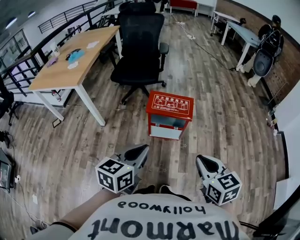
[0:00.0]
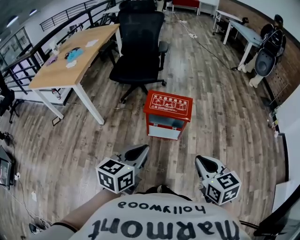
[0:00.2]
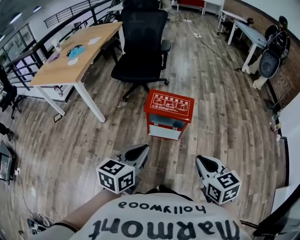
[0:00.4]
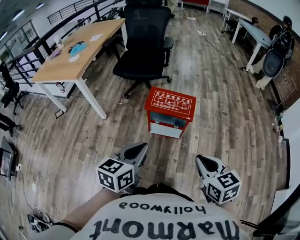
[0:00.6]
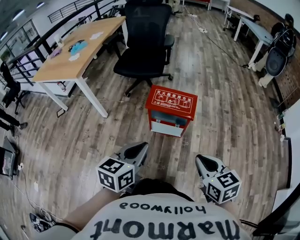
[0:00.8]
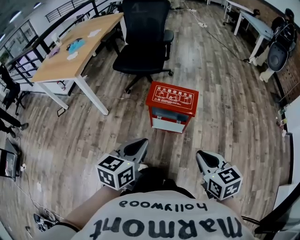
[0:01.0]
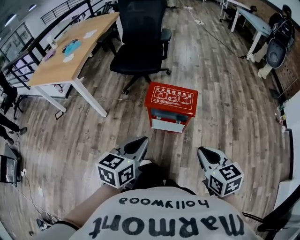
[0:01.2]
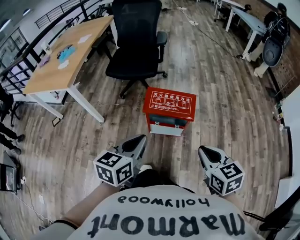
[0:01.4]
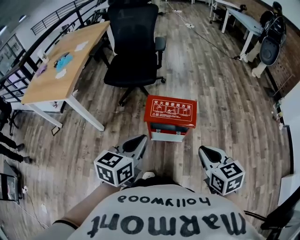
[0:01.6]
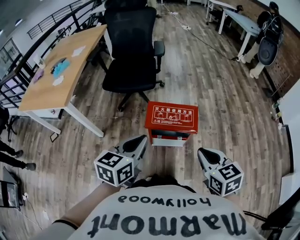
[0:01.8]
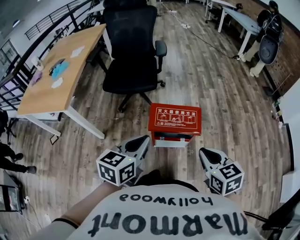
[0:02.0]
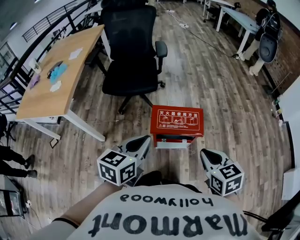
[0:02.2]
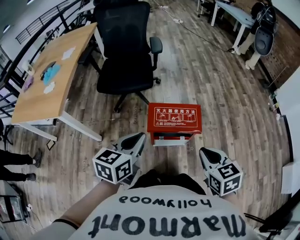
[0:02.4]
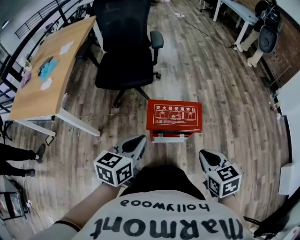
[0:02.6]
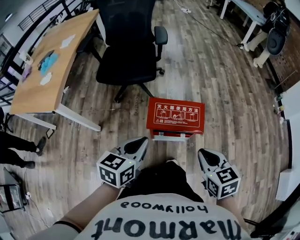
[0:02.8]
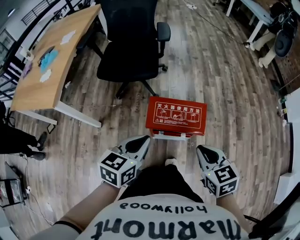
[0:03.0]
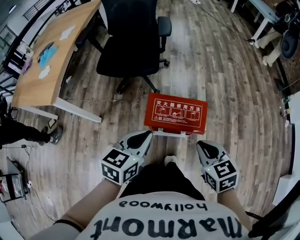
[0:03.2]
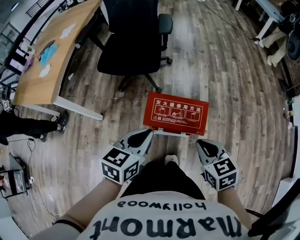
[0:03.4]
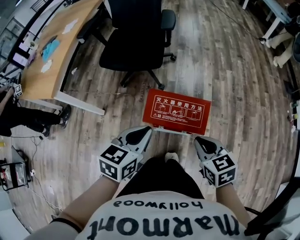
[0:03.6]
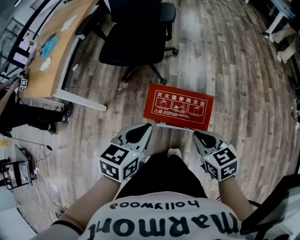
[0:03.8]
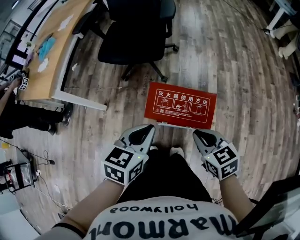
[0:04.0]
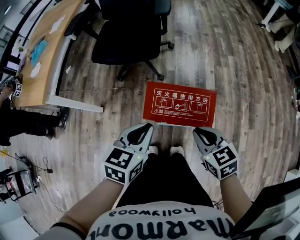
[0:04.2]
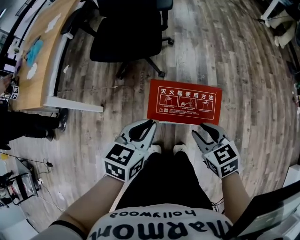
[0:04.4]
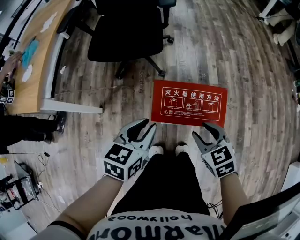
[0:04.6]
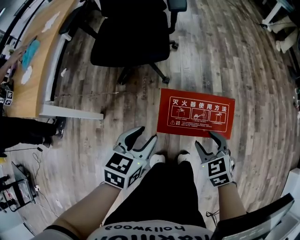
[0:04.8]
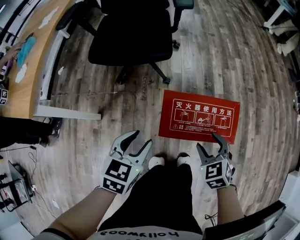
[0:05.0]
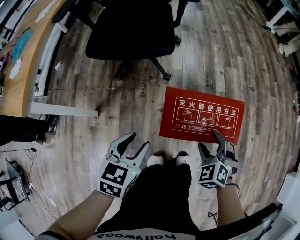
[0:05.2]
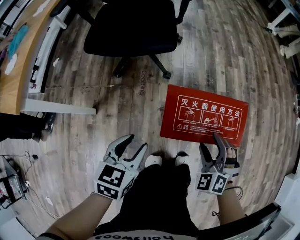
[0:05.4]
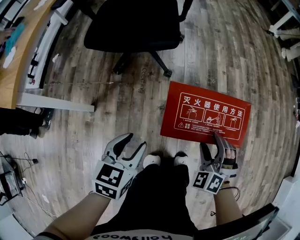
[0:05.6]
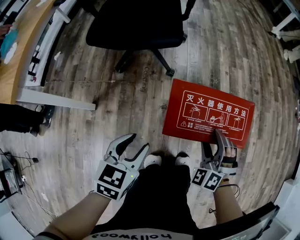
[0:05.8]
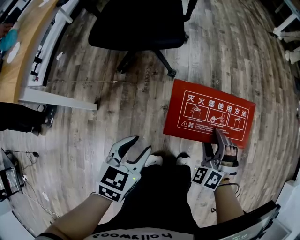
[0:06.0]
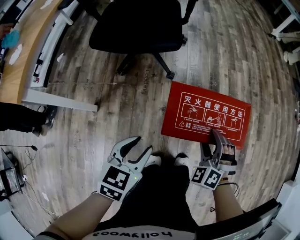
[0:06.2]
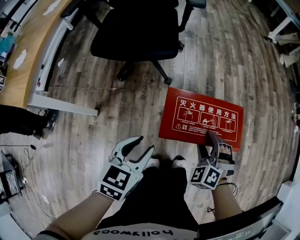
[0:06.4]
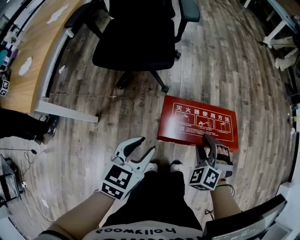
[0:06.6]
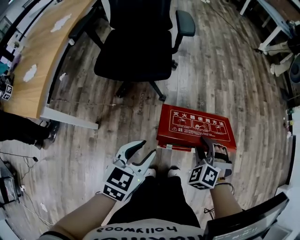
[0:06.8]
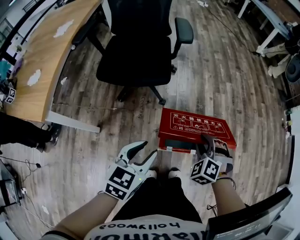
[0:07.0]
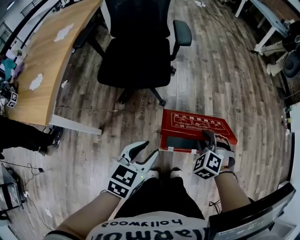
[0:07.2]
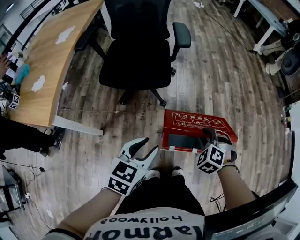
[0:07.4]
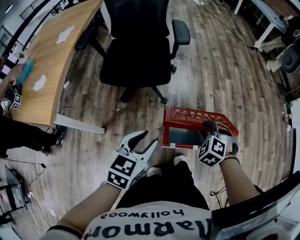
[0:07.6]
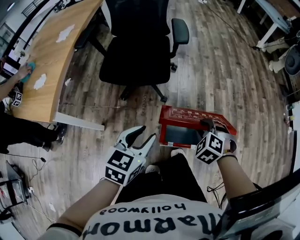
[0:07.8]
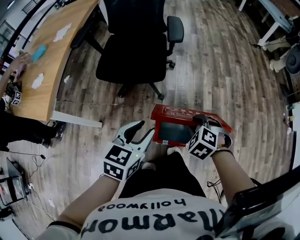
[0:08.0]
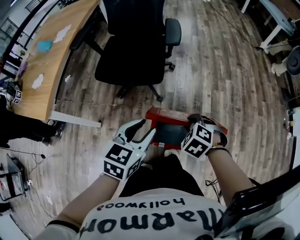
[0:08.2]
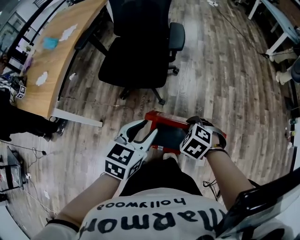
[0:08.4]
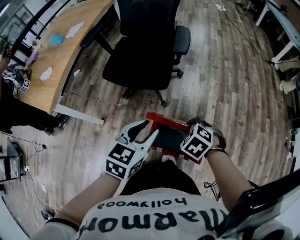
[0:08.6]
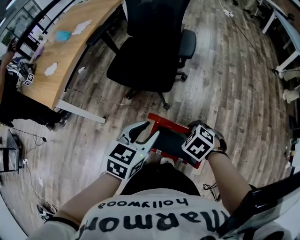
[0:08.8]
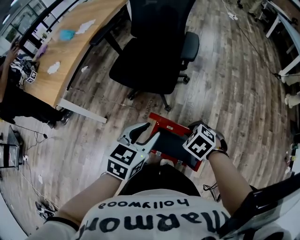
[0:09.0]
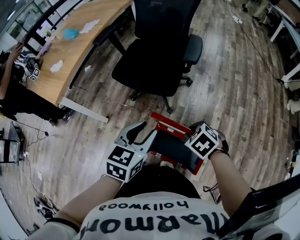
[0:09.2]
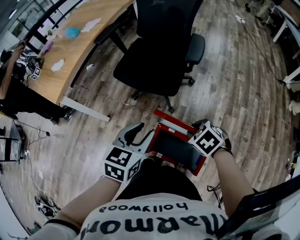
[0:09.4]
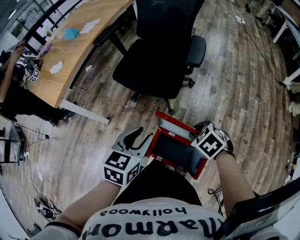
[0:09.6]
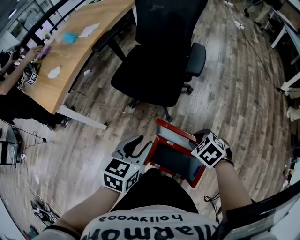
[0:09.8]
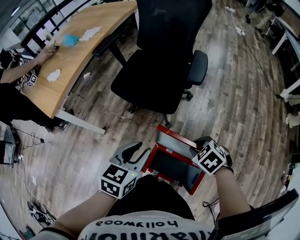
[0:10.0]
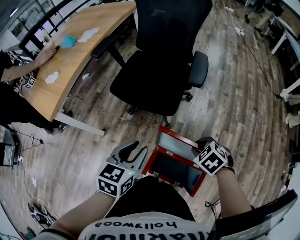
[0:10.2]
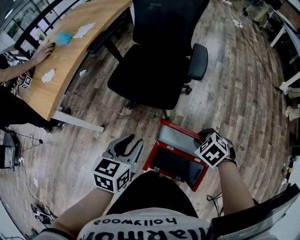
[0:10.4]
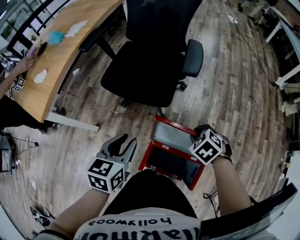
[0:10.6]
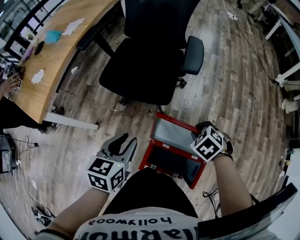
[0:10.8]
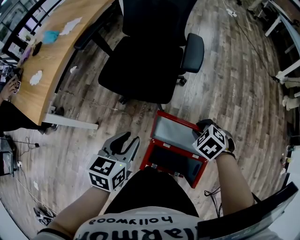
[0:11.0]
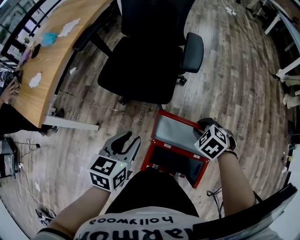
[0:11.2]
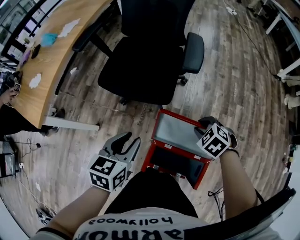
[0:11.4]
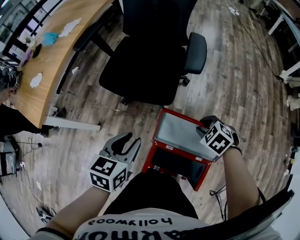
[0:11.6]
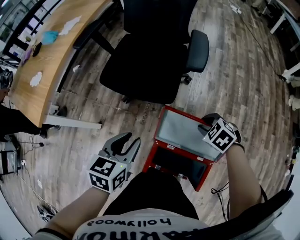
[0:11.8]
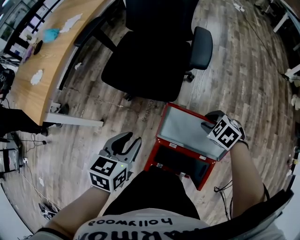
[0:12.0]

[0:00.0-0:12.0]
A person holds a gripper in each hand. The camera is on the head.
0:00.0 to 0:01.6: Both grippers move forward, about 15 cm.
0:01.6 to 0:03.0: The right gripper shifts roughly 15 cm forward, to the left and downward, while the left gripper shifts about 15 cm forward and downward.
0:03.0 to 0:04.4: Both grippers travel together downward and forward, some 15 cm. The right gripper opens.
0:04.4 to 0:06.0: The right gripper moves downward, some 20 cm, twists some 50 degrees counterclockwise, seen from behind, and opens. Meanwhile the left gripper goes some 20 cm downward and to the left, and opens its fingers.
0:06.0 to 0:07.6: Both grippers move upward, about 20 cm. The right gripper closes.
0:07.6 to 0:09.0: The right gripper changes place by about 10 cm, and turns by some 30 degrees; the left gripper shifts by approximately 15 cm.
0:09.0 to 0:10.4: The right gripper is displaced forward by about 10 cm. The left gripper moves forward and to the left, some 10 cm.
0:10.4 to 0:12.0: The left gripper shifts some 5 cm downward. The right gripper ends up roughly 10 cm from where it was.

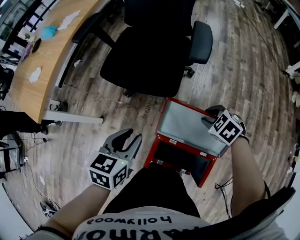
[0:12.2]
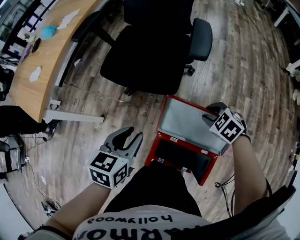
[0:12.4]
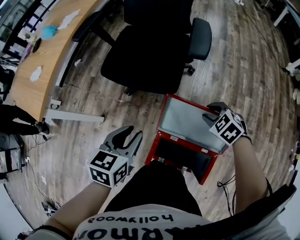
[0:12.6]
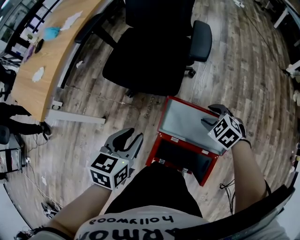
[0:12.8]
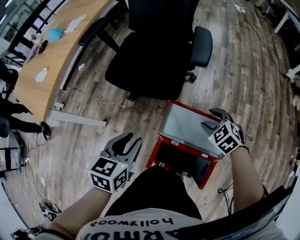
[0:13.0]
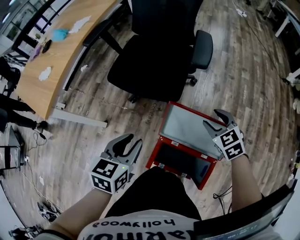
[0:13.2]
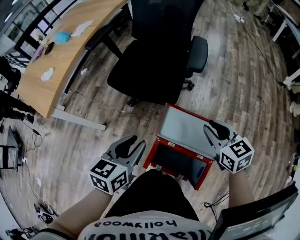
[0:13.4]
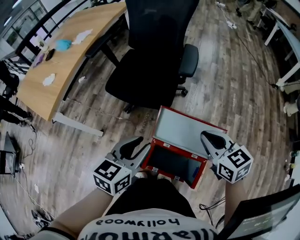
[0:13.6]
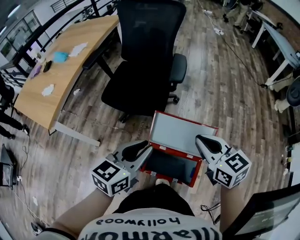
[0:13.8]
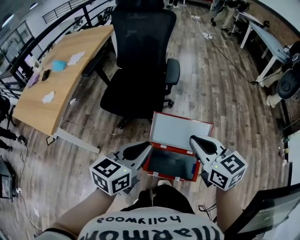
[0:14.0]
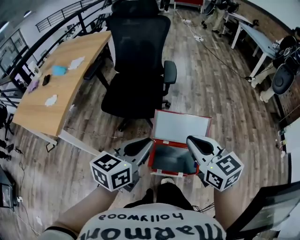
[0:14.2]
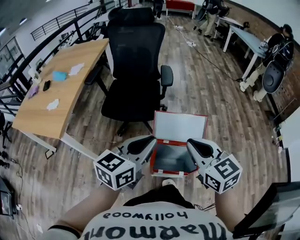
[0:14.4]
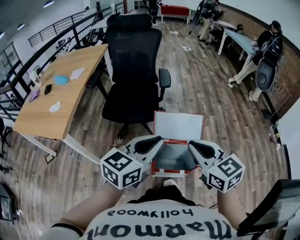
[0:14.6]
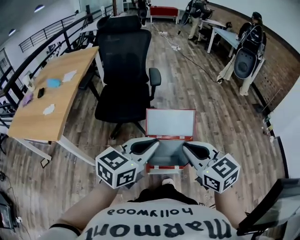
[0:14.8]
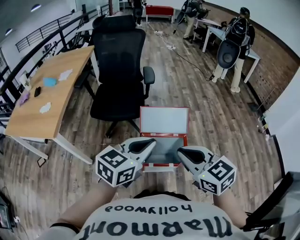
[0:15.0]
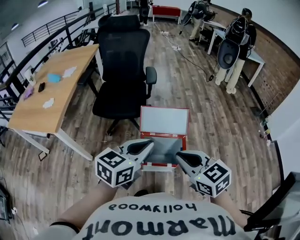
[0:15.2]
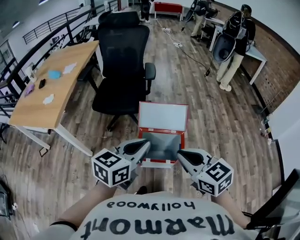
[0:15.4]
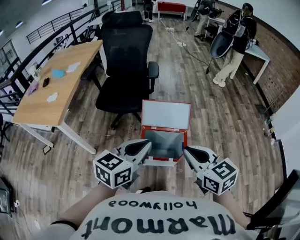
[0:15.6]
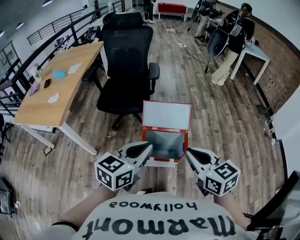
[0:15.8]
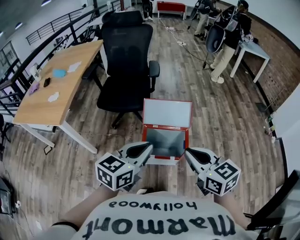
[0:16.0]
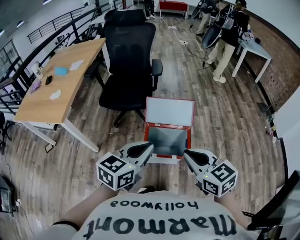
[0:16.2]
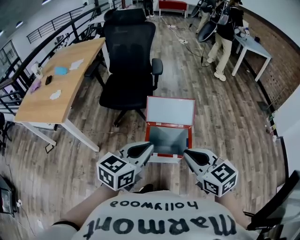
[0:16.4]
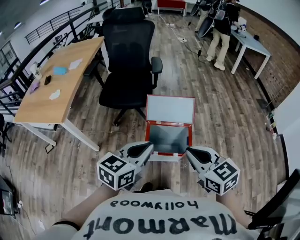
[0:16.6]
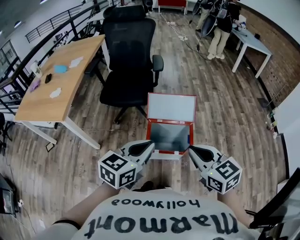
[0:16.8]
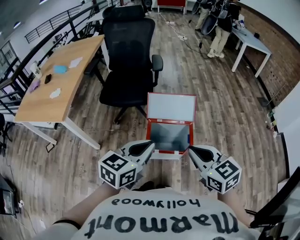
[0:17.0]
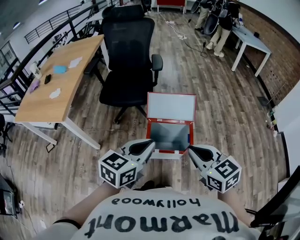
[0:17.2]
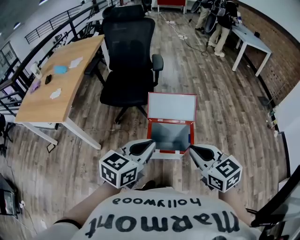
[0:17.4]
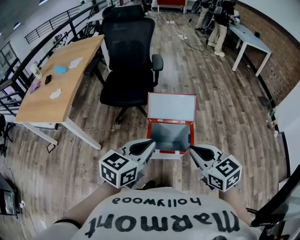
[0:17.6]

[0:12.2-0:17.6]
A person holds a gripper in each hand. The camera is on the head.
0:12.2 to 0:13.6: The left gripper goes roughly 10 cm upward and backward. Meanwhile the right gripper heads upward and backward, covering about 20 cm, points its fingers about 40 degrees further upward, and closes up.
0:13.6 to 0:15.0: Both grippers move backward and upward, some 30 cm. The left gripper turns by some 30 degrees, and closes up.
0:15.0 to 0:16.2: The left gripper travels backward by approximately 5 cm. Meanwhile the right gripper ends up approximately 5 cm from where it was.
0:16.2 to 0:17.6: The grippers make only small movements.

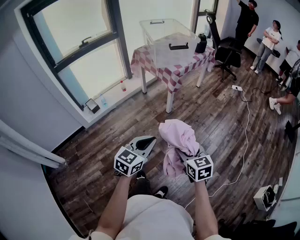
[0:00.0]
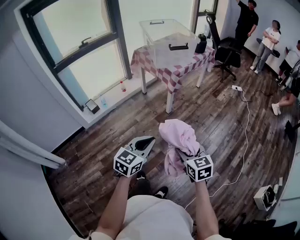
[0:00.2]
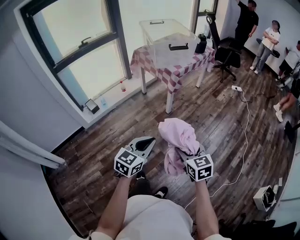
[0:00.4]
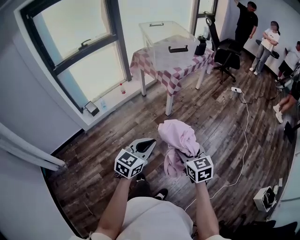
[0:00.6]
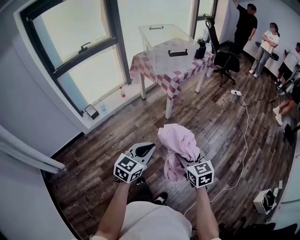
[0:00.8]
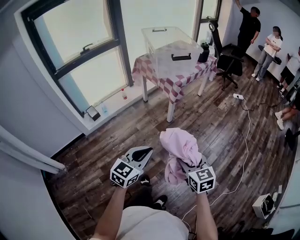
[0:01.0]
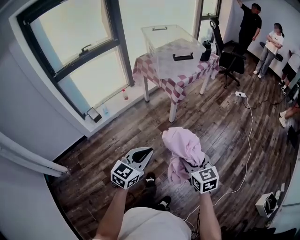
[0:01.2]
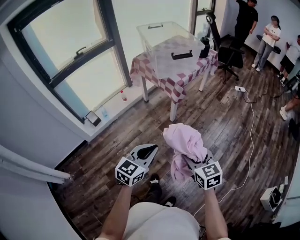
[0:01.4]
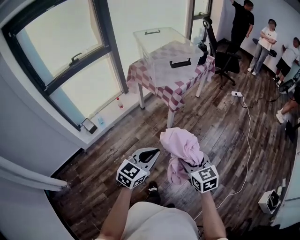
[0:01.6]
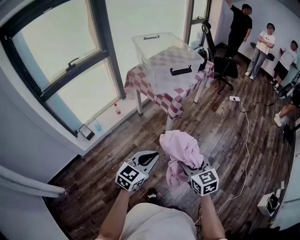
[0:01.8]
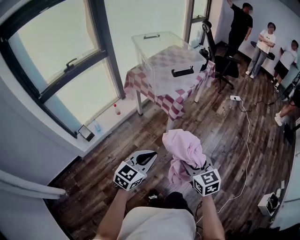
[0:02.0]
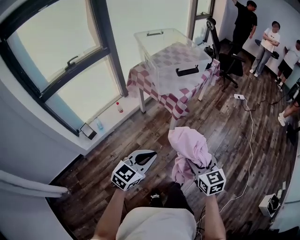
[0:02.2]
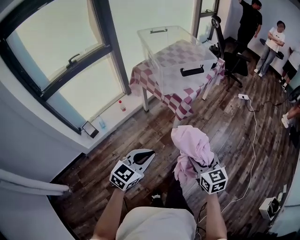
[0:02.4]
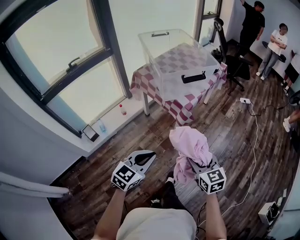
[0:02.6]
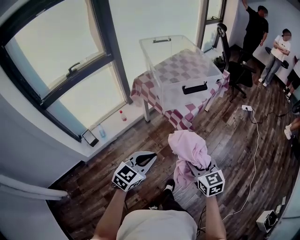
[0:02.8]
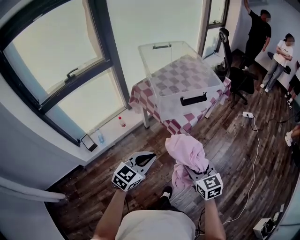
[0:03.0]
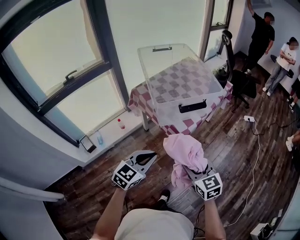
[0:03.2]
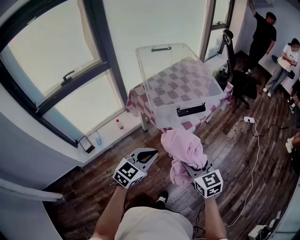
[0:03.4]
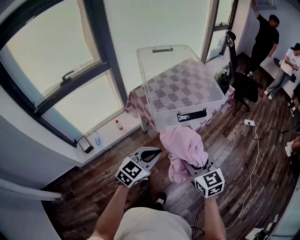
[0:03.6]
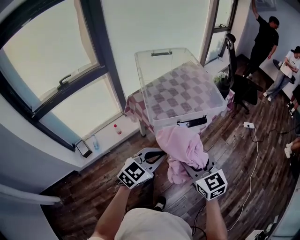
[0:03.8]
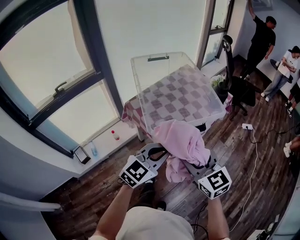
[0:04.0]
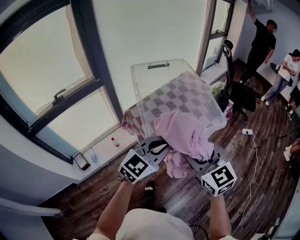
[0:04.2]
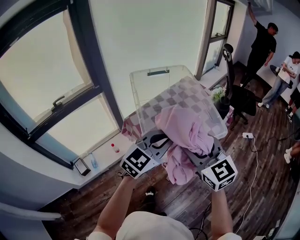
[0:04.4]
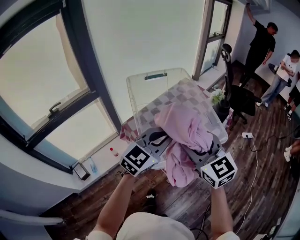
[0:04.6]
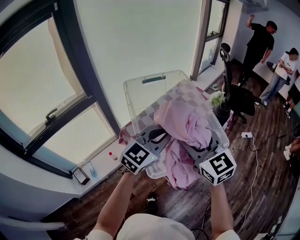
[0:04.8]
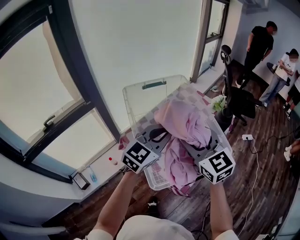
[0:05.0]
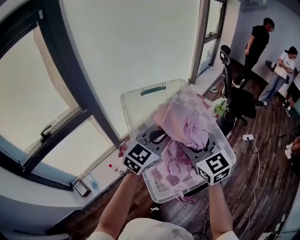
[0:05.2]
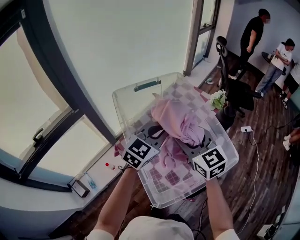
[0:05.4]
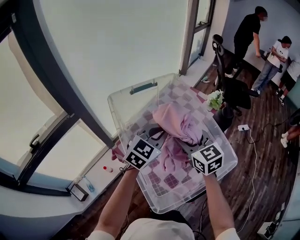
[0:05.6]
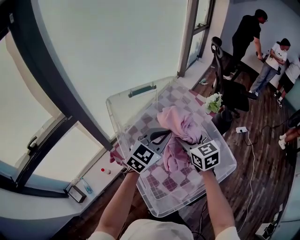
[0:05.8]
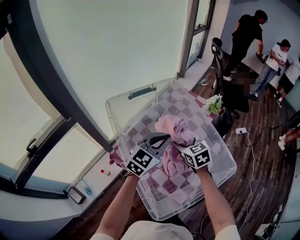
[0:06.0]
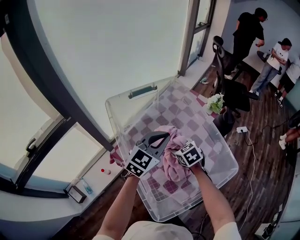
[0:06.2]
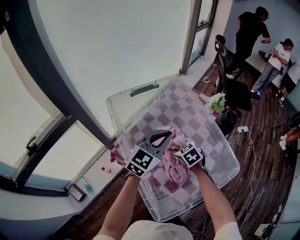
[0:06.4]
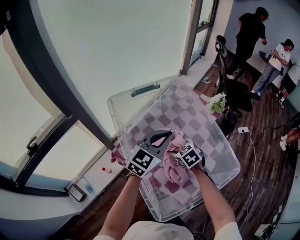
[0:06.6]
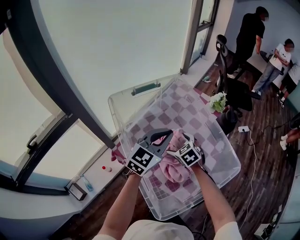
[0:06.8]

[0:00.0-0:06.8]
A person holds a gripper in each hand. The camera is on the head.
0:00.0 to 0:01.4: The grippers both shift forward by about 10 cm.
0:01.4 to 0:02.8: The two grippers go about 25 cm forward.
0:02.8 to 0:04.0: The right gripper goes about 25 cm forward and upward; the left gripper travels forward by some 25 cm.
0:04.0 to 0:05.4: Both grippers move forward, some 35 cm.
0:05.4 to 0:06.8: The right gripper travels downward by some 20 cm, angles its fingers downward, by about 40 degrees, and opens its fingers.
